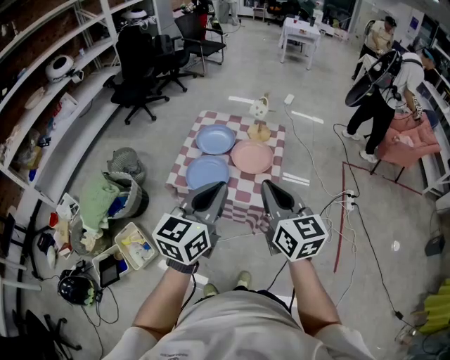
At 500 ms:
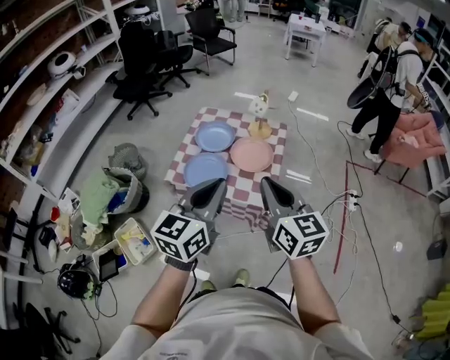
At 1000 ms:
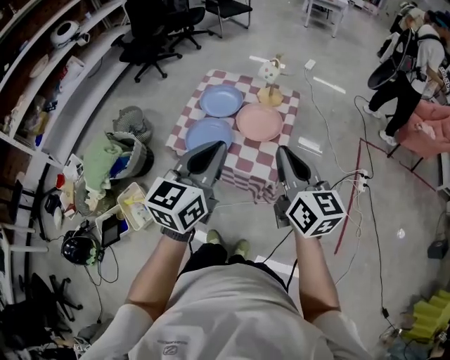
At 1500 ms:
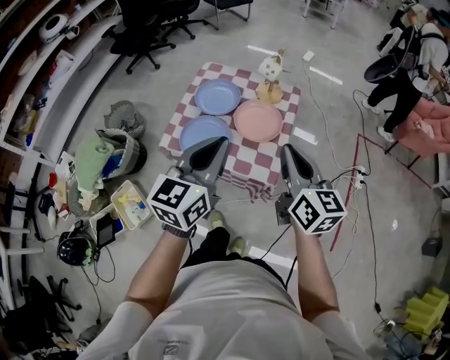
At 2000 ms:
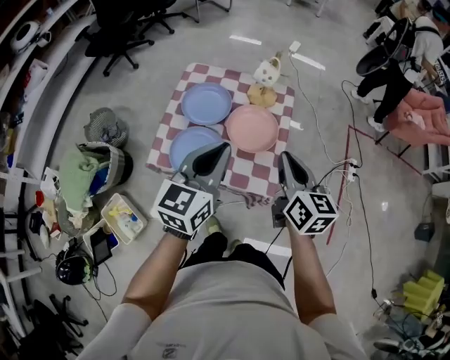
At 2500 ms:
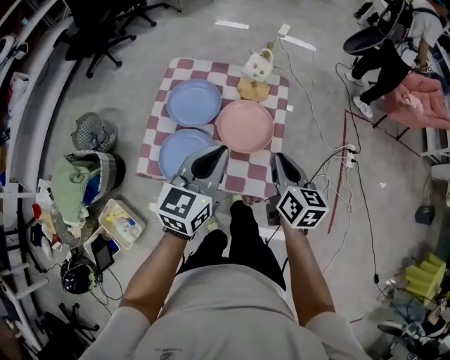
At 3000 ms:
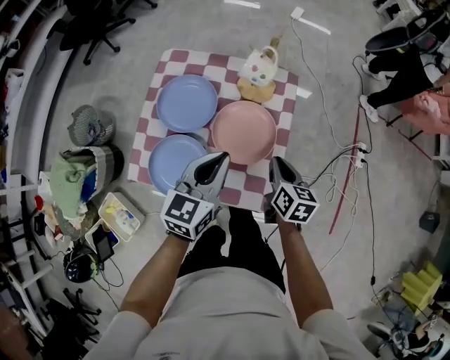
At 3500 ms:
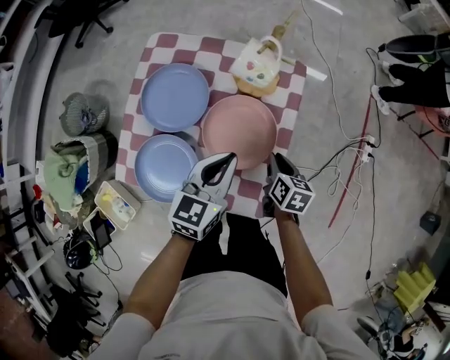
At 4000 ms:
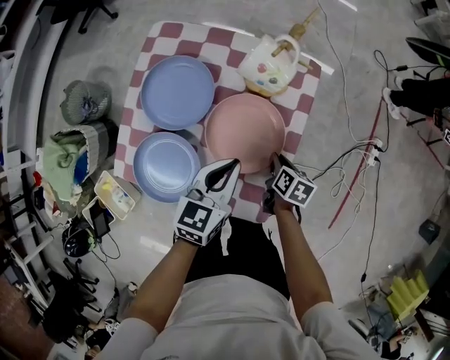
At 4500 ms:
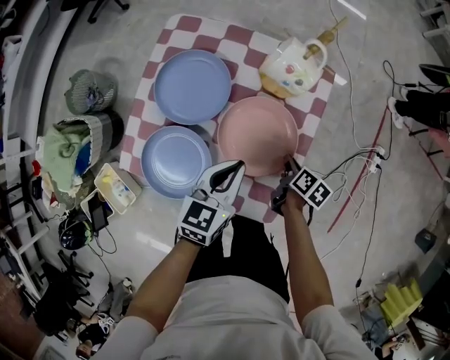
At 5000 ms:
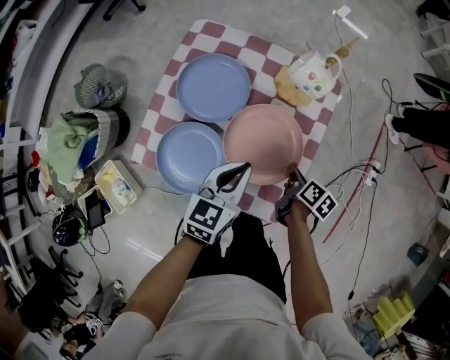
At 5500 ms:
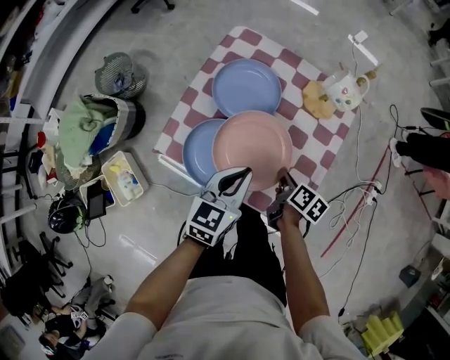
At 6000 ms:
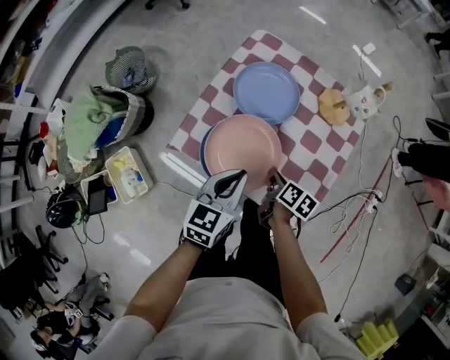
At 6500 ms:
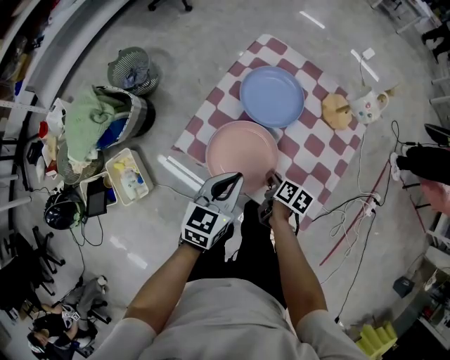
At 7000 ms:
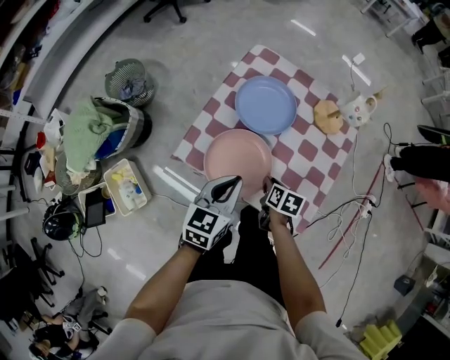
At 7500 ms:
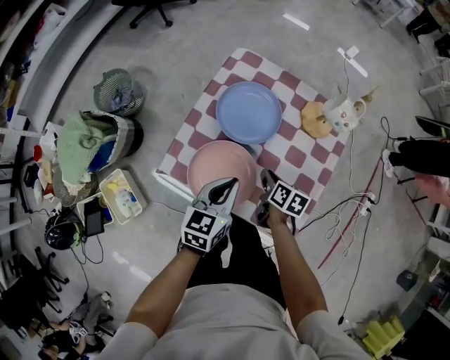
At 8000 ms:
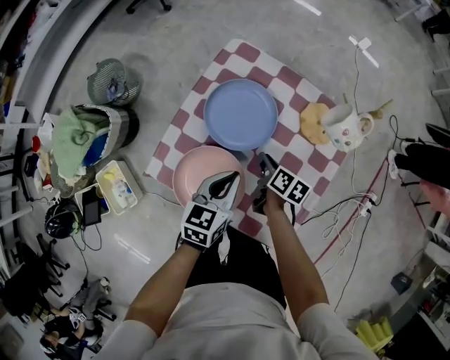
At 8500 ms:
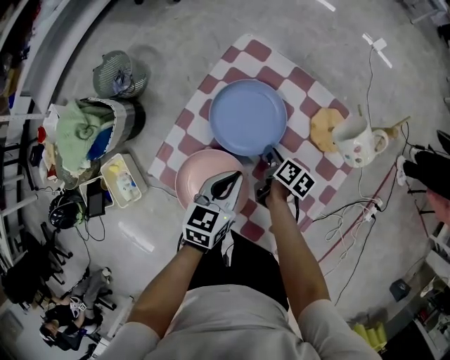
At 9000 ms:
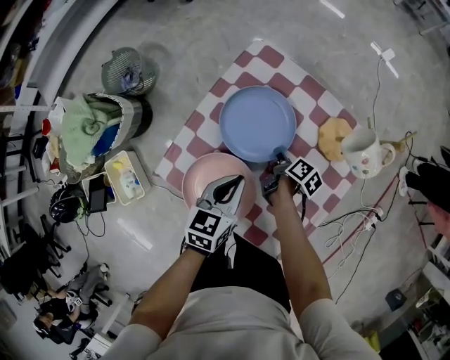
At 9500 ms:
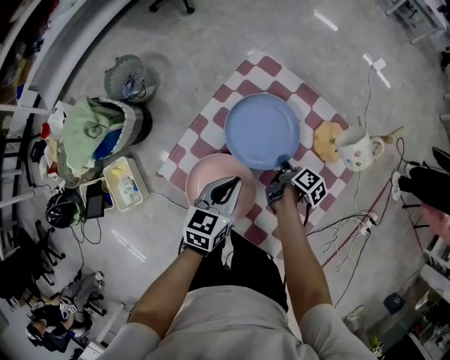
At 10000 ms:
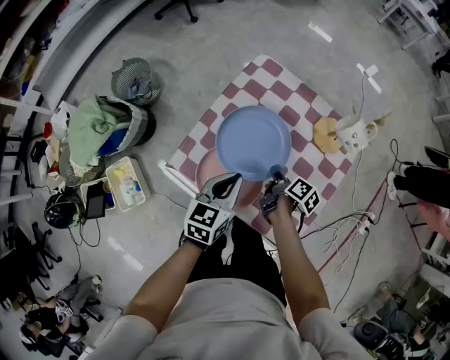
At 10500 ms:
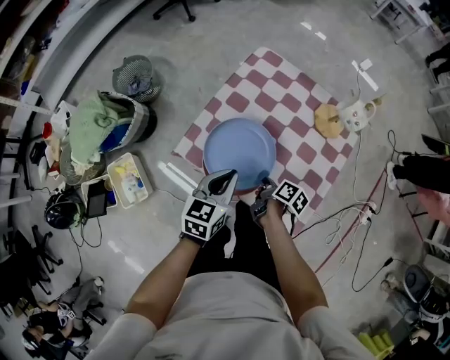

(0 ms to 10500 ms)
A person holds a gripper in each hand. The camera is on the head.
0 ms - 2000 ms: The two grippers go some 25 cm forward and downward.
2000 ms - 4000 ms: The grippers both shift downward and forward by roughly 40 cm. The left gripper turns by approximately 20 degrees. Meanwhile the right gripper tips its fingers downward by roughly 40 degrees.
4000 ms - 6500 ms: The right gripper shifts some 25 cm to the left; the left gripper shifts about 25 cm to the left and backward.
6500 ms - 8500 ms: The left gripper travels forward and to the right by about 15 cm; the right gripper heads forward, covering roughly 20 cm.
8500 ms - 10500 ms: The left gripper moves backward, to the left and upward, some 15 cm. The right gripper shifts some 20 cm backward.

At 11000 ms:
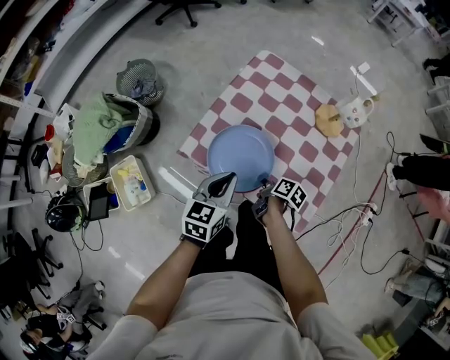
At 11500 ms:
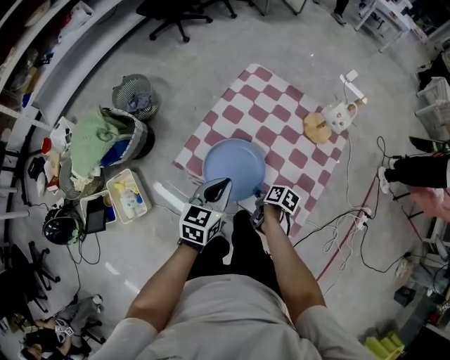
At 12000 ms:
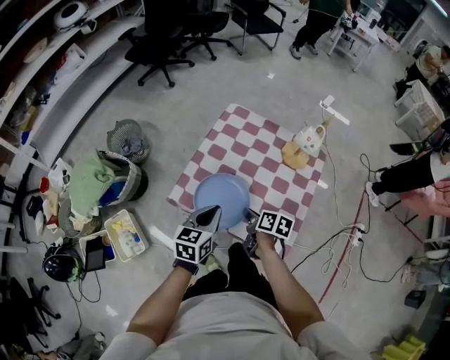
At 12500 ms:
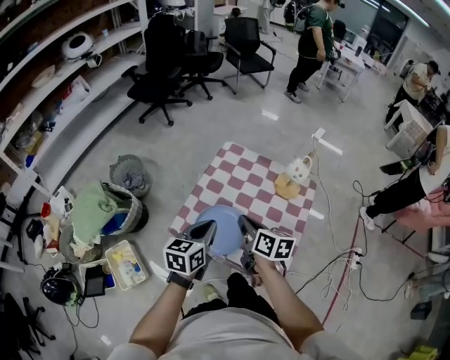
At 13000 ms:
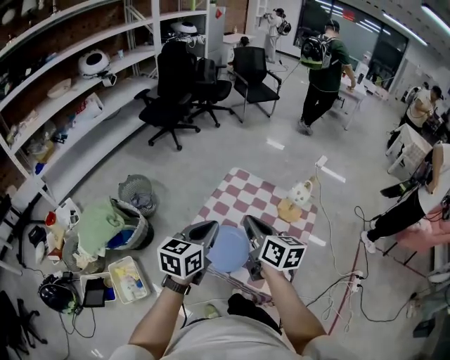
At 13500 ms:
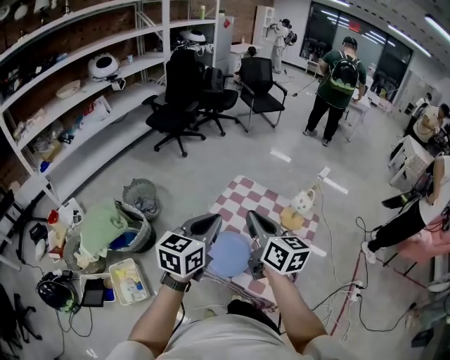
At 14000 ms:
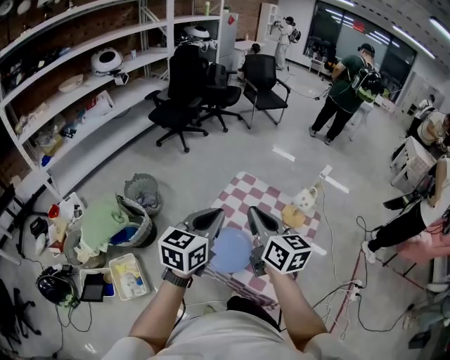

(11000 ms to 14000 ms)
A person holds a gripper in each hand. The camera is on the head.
11000 ms - 12500 ms: The left gripper heads upward, covering about 10 cm, while the right gripper travels upward by approximately 30 cm, and rotates roughly 40 degrees.
12500 ms - 14000 ms: The two grippers go roughly 20 cm upward. The right gripper rotates some 30 degrees.

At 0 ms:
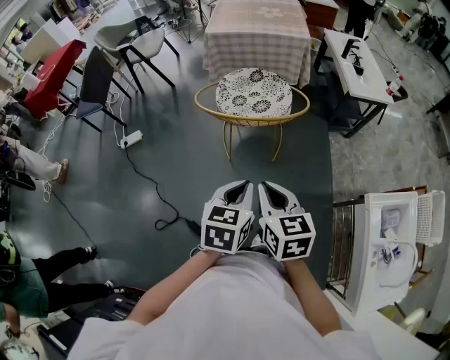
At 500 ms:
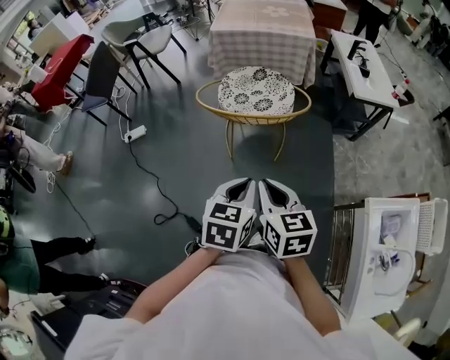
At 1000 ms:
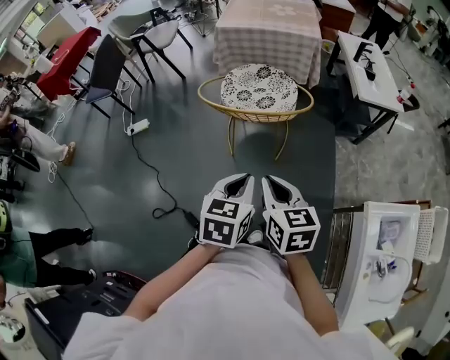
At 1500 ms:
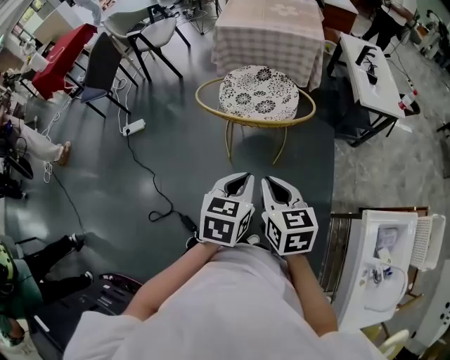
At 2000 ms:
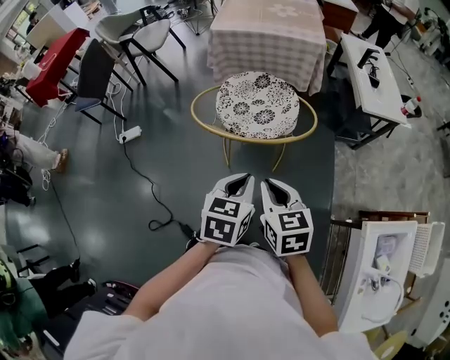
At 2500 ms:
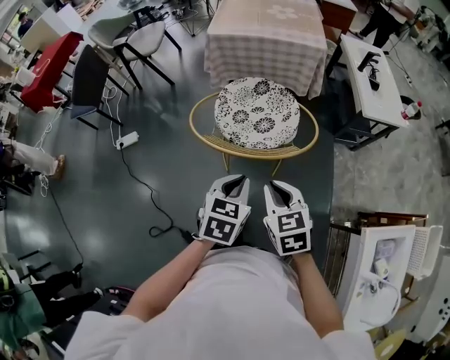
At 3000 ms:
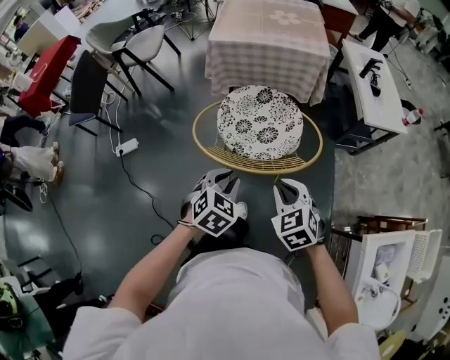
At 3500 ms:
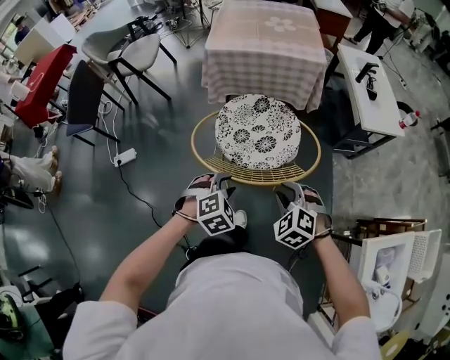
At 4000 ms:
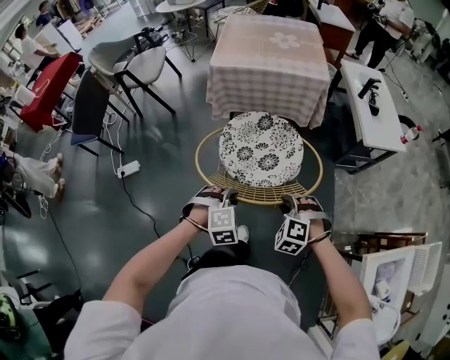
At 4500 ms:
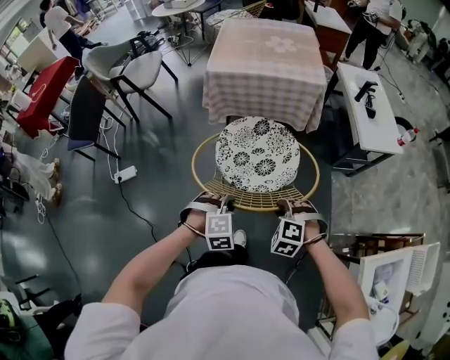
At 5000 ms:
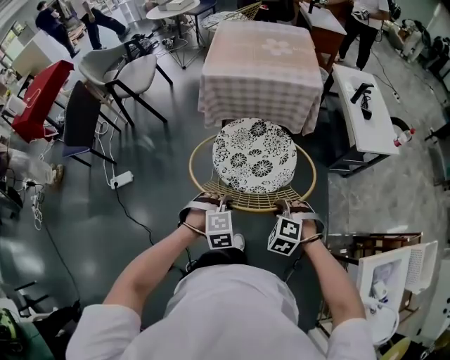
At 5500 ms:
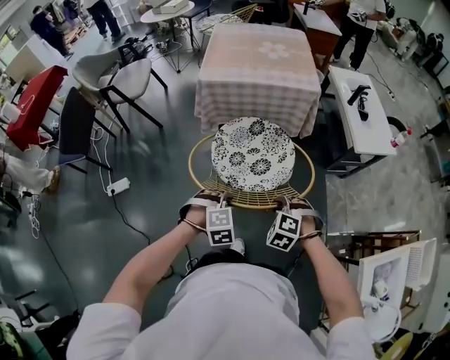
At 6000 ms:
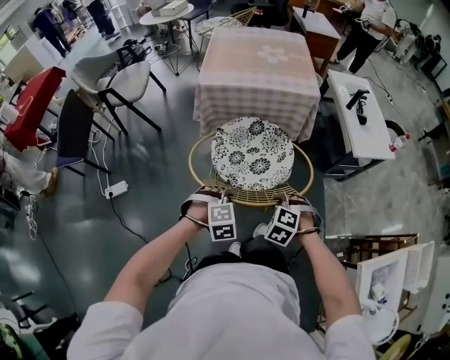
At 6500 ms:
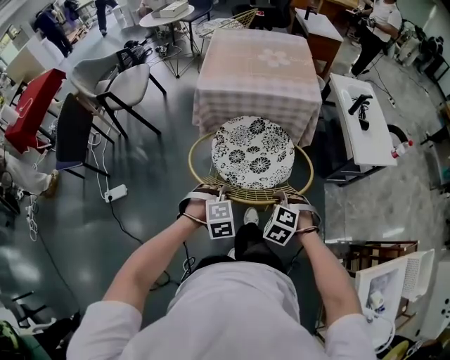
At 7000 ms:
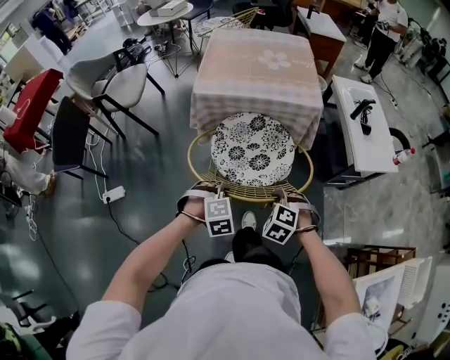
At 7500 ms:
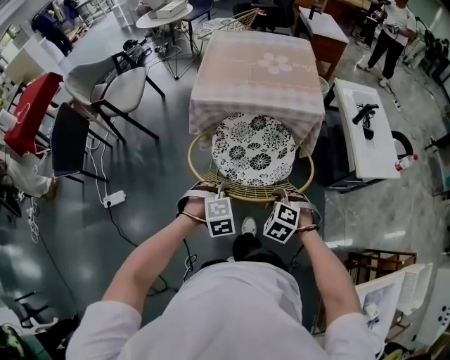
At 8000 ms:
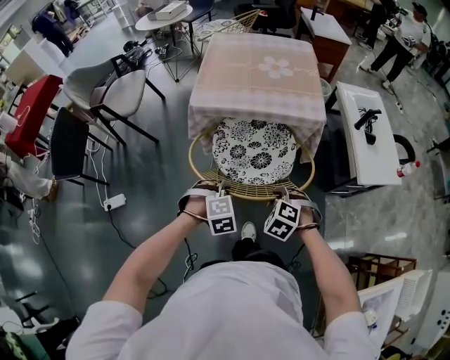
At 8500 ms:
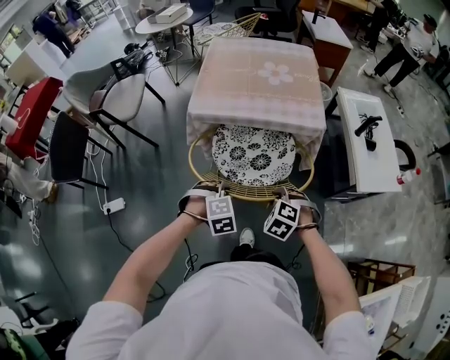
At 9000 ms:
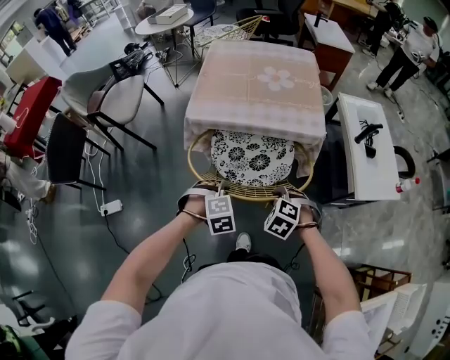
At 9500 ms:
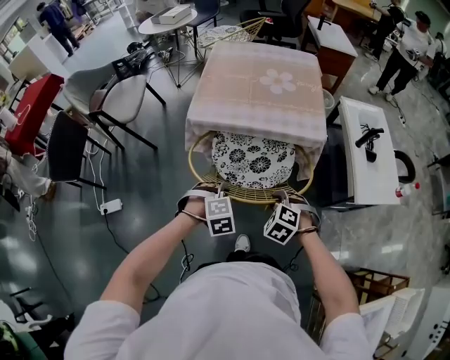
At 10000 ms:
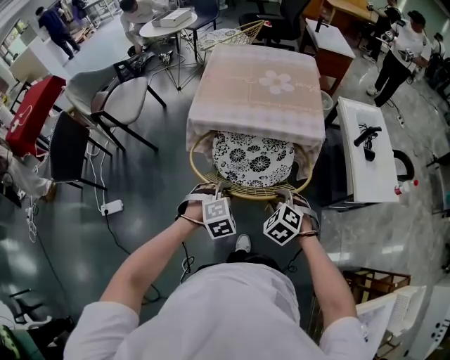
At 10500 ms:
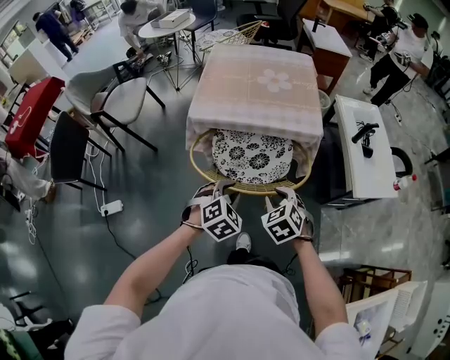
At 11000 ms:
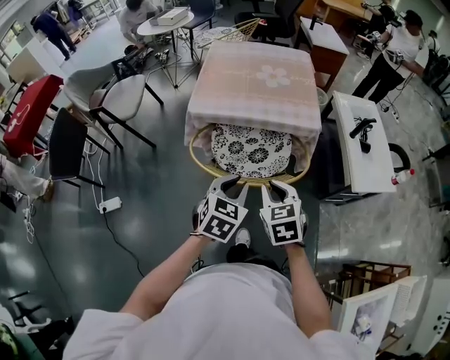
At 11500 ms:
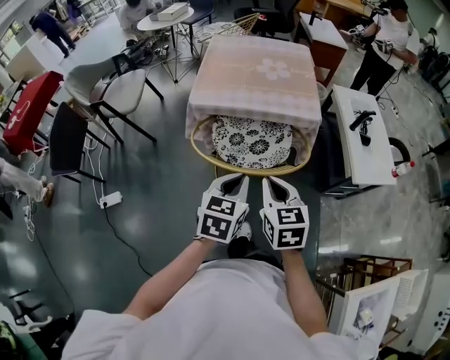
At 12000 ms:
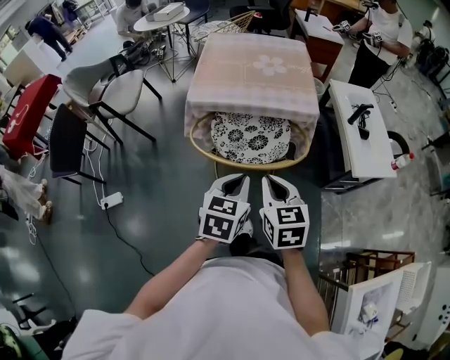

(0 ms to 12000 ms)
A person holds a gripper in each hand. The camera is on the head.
0 ms - 2000 ms: The two grippers go some 10 cm forward.
2000 ms - 4000 ms: The left gripper shifts some 20 cm forward, downward and to the left, rotates around the line of its fingers by some 70 degrees, clockwise from behind, and opens up. Meanwhile the right gripper heads forward and downward, covering about 20 cm, and twists about 70 degrees counterclockwise, seen from behind.
4000 ms - 6000 ms: Both grippers travel together forward, approximately 10 cm.
6000 ms - 8000 ms: The grippers both shift forward by some 20 cm.
8000 ms - 10000 ms: The left gripper changes place by roughly 5 cm. Meanwhile the right gripper goes about 5 cm forward.
10000 ms - 12000 ms: The grippers both shift upward and backward by some 15 cm. The right gripper rotates around the line of its fingers by about 50 degrees, clockwise from behind, and closes; the left gripper rotates around the line of its fingers by approximately 50 degrees, counterclockwise from behind, and closes up.

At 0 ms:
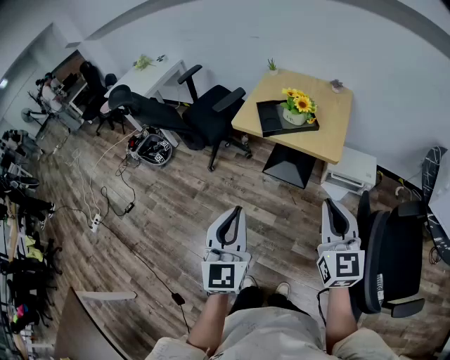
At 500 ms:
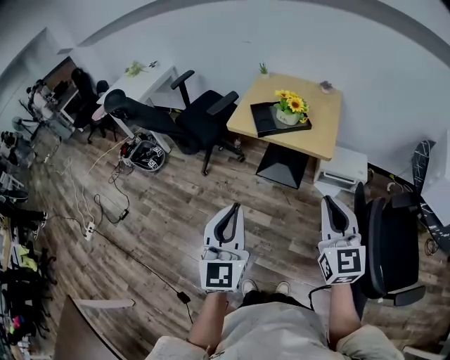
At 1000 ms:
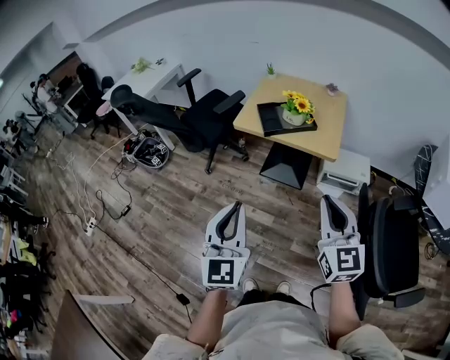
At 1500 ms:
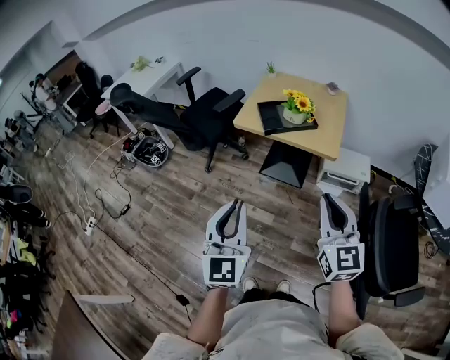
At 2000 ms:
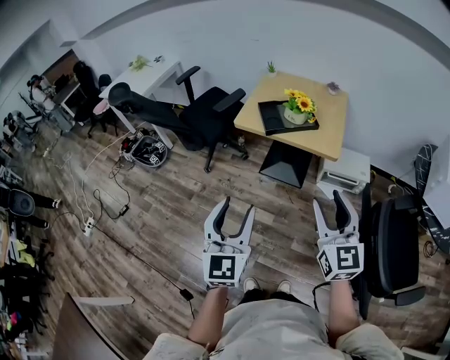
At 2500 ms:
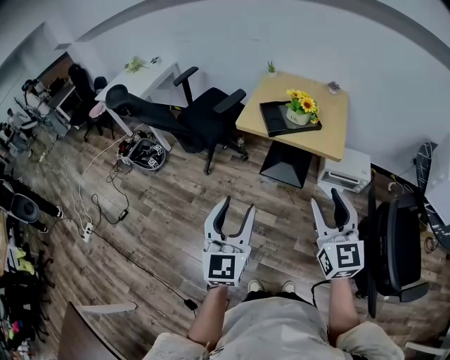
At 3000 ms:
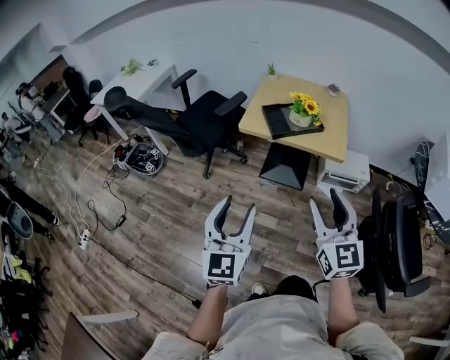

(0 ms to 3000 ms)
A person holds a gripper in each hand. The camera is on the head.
0 ms - 1500 ms: The left gripper moves roughly 5 cm, while the right gripper moves some 5 cm.
1500 ms - 3000 ms: The grippers both shift to the left by about 10 cm. The right gripper opens; the left gripper opens up.
